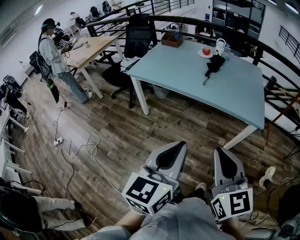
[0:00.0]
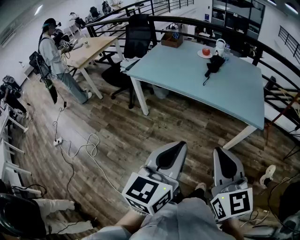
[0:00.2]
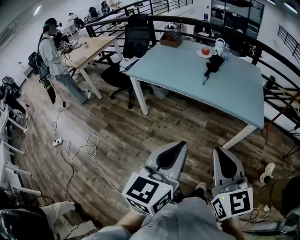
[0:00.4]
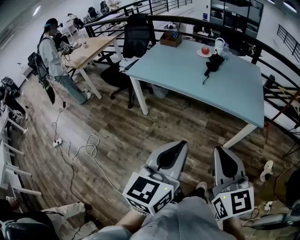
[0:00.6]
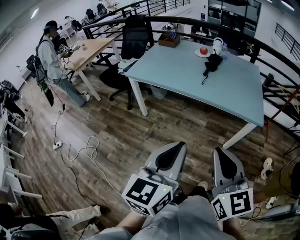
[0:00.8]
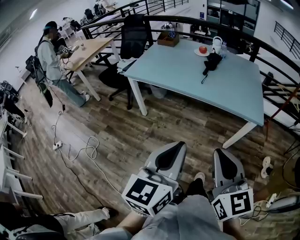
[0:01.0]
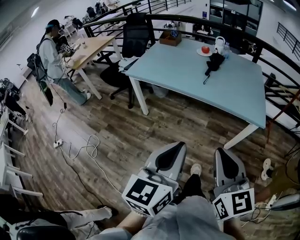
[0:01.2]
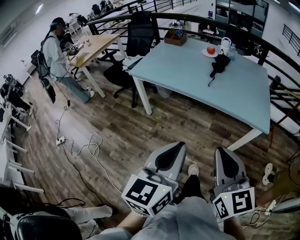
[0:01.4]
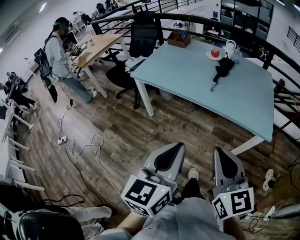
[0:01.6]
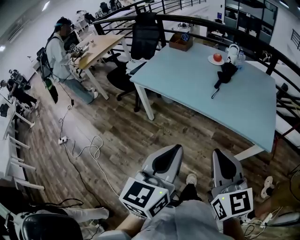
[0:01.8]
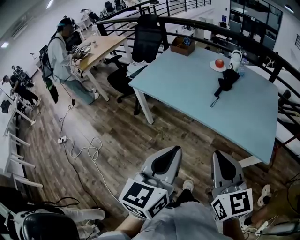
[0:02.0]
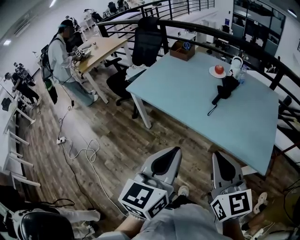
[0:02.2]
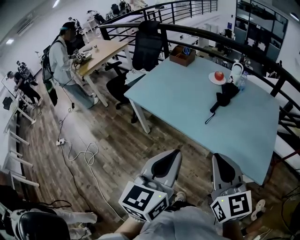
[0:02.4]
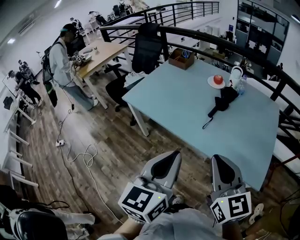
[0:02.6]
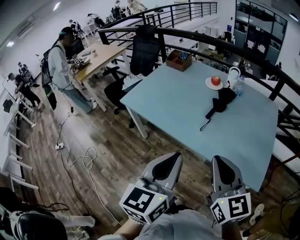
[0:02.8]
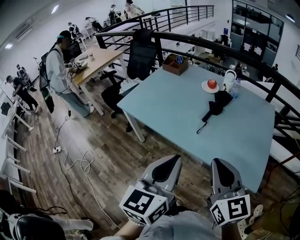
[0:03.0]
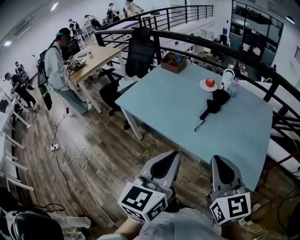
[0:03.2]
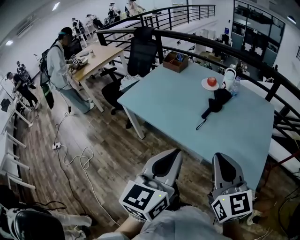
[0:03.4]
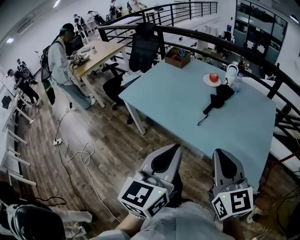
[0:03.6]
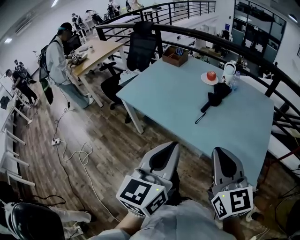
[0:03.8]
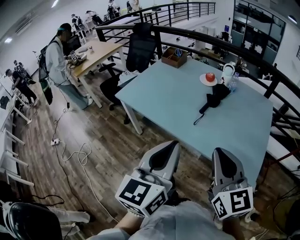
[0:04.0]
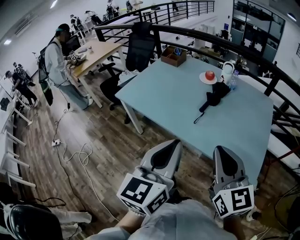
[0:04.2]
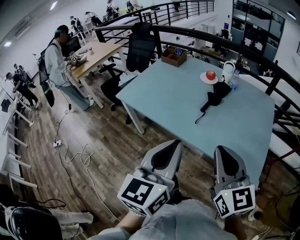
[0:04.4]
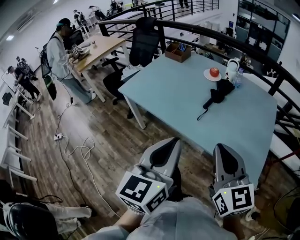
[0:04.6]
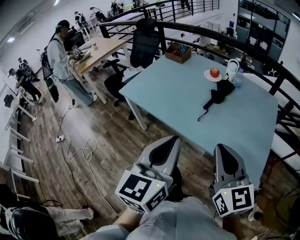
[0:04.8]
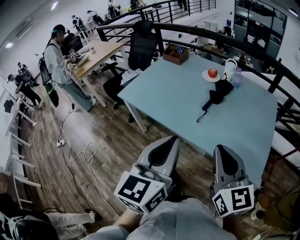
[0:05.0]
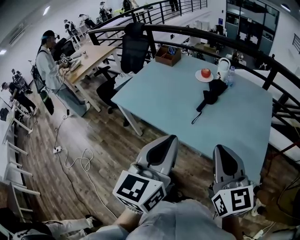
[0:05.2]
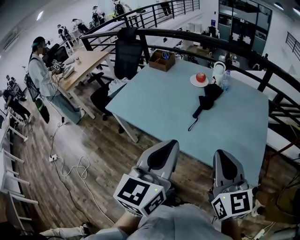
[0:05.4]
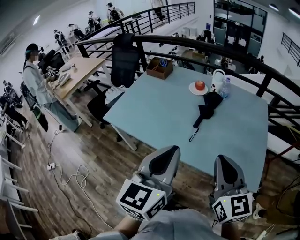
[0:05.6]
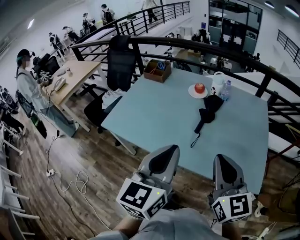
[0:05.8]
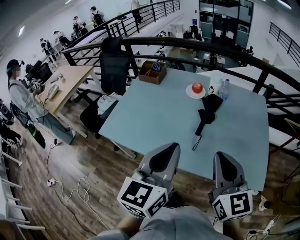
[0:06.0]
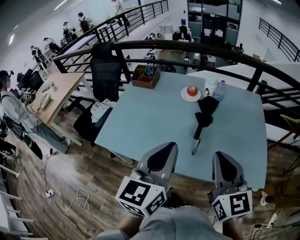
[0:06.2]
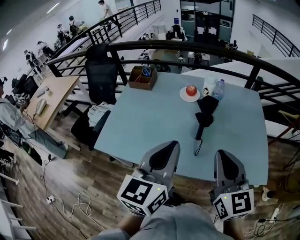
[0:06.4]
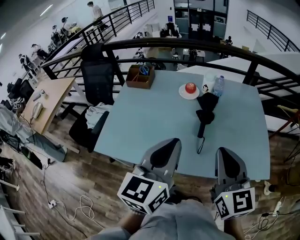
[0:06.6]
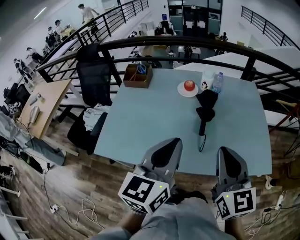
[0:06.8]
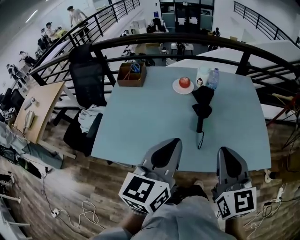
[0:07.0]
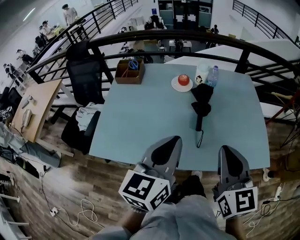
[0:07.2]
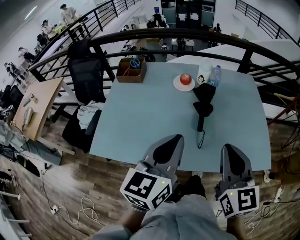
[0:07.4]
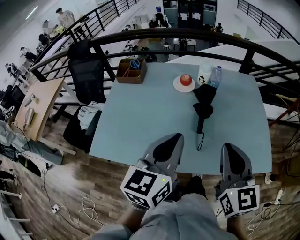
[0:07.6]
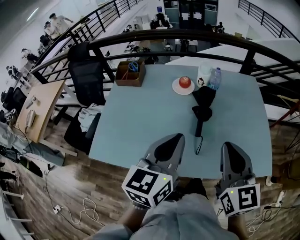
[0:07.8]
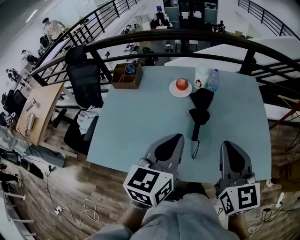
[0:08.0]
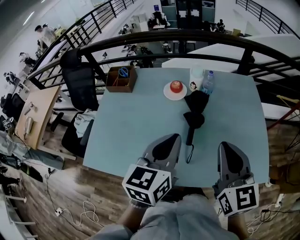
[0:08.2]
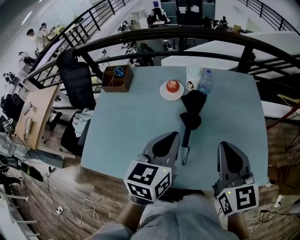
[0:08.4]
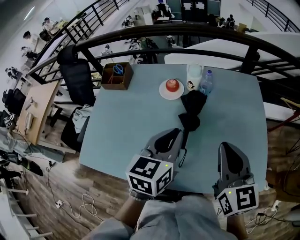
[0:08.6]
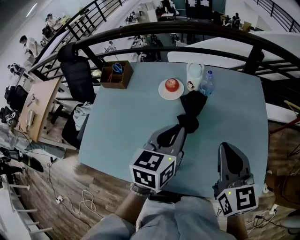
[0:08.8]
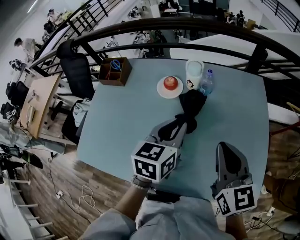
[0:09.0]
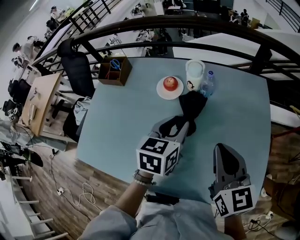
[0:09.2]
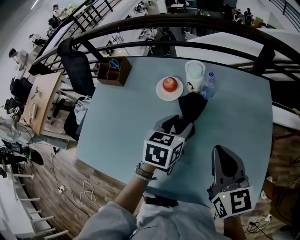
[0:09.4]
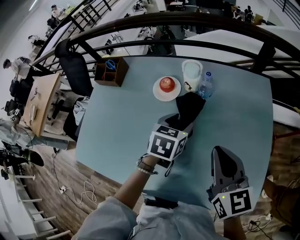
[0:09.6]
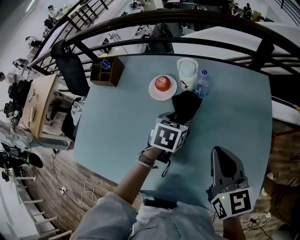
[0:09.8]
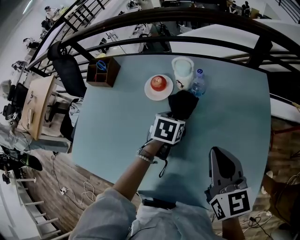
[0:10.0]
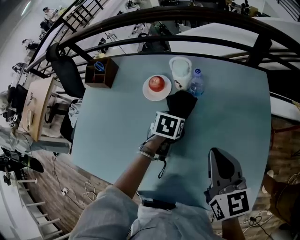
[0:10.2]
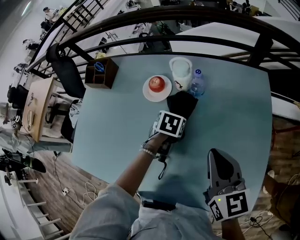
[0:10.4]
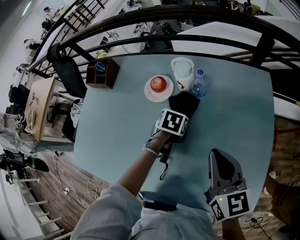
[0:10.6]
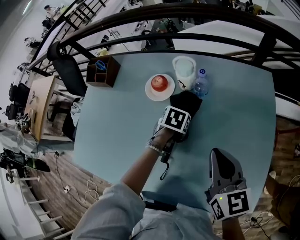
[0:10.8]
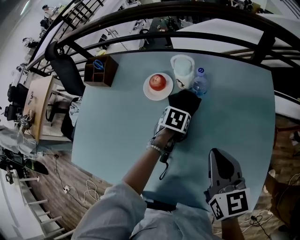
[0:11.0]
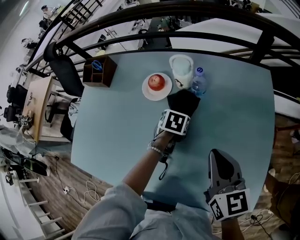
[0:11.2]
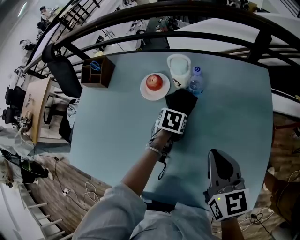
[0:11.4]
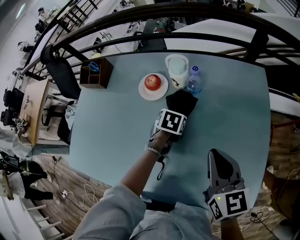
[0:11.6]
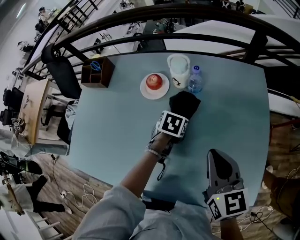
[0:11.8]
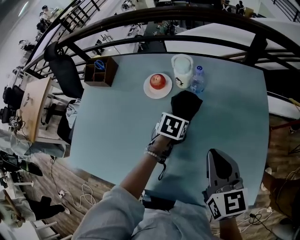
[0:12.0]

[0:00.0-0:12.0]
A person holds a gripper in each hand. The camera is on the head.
0:00.0 to 0:01.6: Both grippers move forward, about 10 cm.
0:01.6 to 0:03.0: Both grippers travel together forward and to the right, roughly 25 cm.
0:03.0 to 0:04.4: The grippers move only a little.
0:04.4 to 0:06.0: Both grippers move forward, approximately 15 cm.
0:06.0 to 0:07.6: The two grippers go roughly 10 cm forward and to the left.
0:07.6 to 0:09.0: The left gripper is displaced forward, to the right and downward by approximately 25 cm; the right gripper heads forward and to the right, covering approximately 20 cm.
0:09.0 to 0:10.4: The right gripper moves downward and forward, roughly 10 cm. The left gripper moves downward and forward, some 25 cm, tilts its fingers about 40 degrees downward, and opens.
0:10.4 to 0:12.0: The grippers make only small movements.

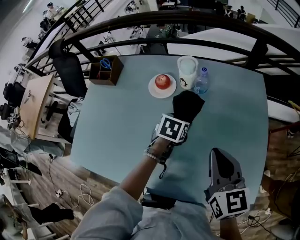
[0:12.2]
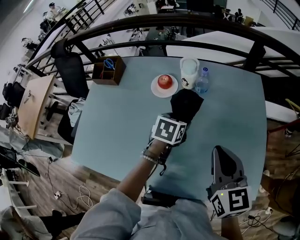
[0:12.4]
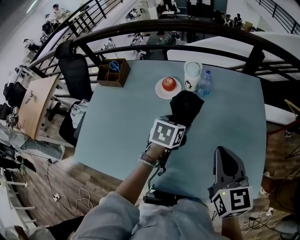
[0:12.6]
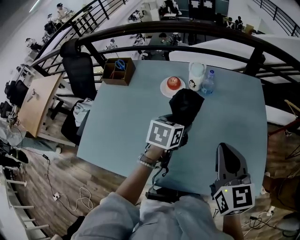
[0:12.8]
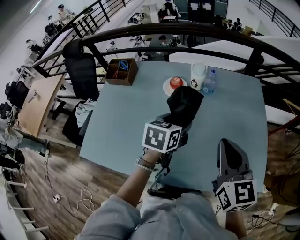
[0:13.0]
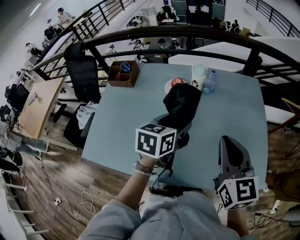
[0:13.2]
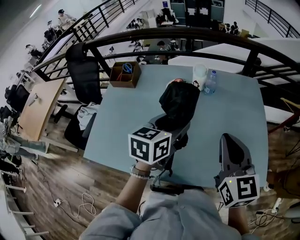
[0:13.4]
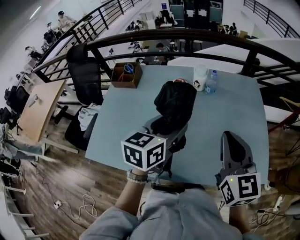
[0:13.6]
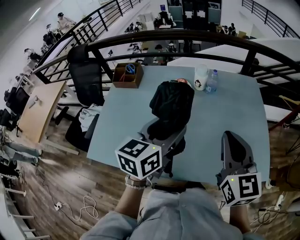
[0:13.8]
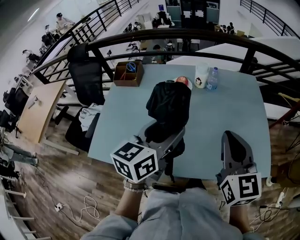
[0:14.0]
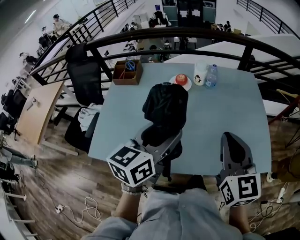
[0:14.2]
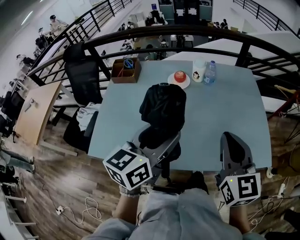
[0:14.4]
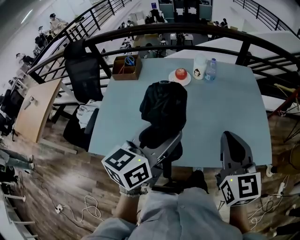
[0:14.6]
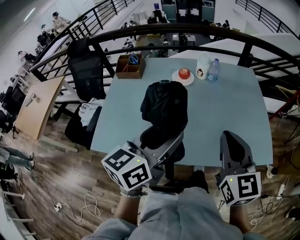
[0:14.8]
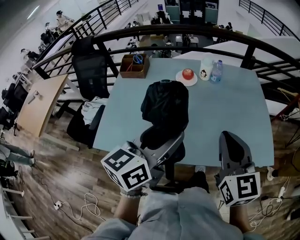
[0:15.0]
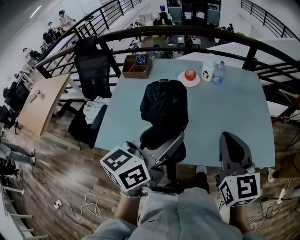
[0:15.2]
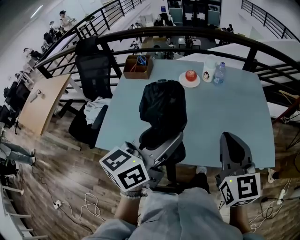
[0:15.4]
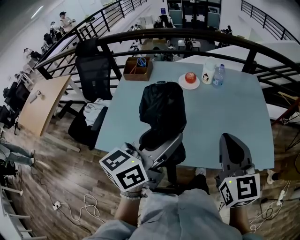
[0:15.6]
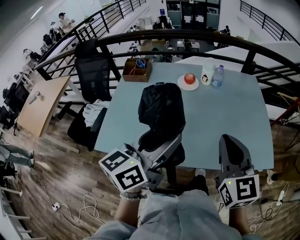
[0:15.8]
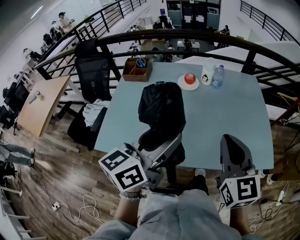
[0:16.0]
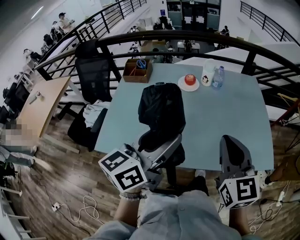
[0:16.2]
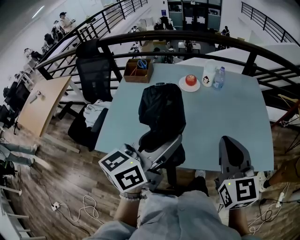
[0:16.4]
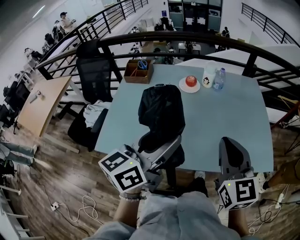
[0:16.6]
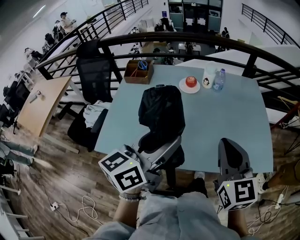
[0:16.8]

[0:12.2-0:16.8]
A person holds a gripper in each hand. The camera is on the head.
0:12.2 to 0:13.8: The right gripper shifts some 20 cm backward, upward and to the left, while the left gripper is displaced upward, backward and to the left by roughly 35 cm, and points its fingers about 40 degrees further upward.
0:13.8 to 0:15.2: The two grippers go some 15 cm backward and to the left.
0:15.2 to 0:16.8: Neither gripper changes place.

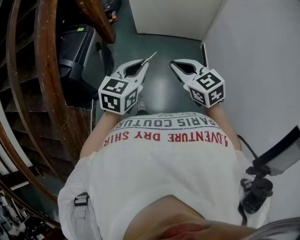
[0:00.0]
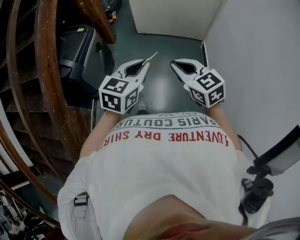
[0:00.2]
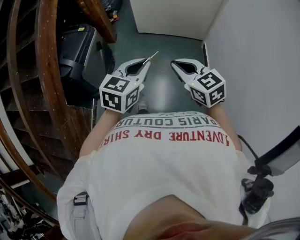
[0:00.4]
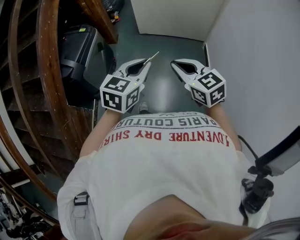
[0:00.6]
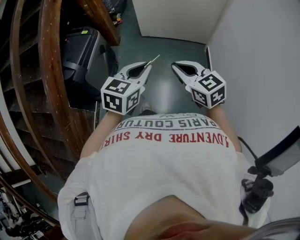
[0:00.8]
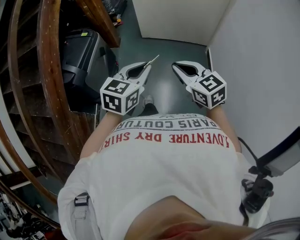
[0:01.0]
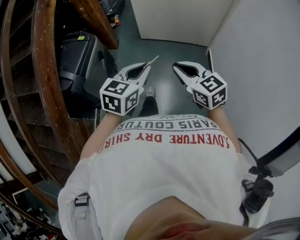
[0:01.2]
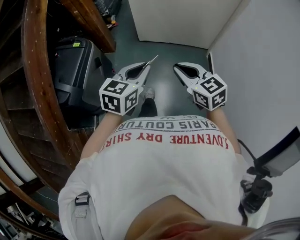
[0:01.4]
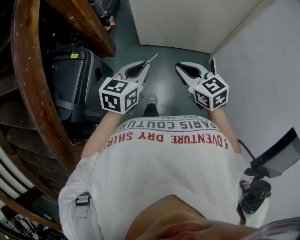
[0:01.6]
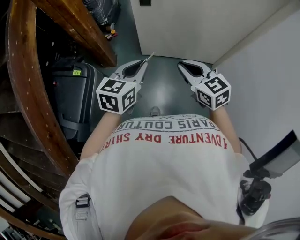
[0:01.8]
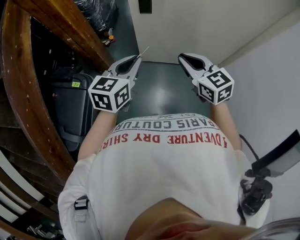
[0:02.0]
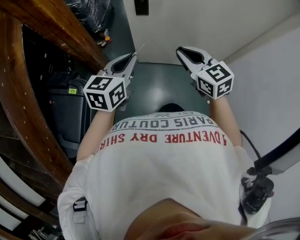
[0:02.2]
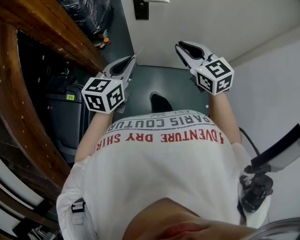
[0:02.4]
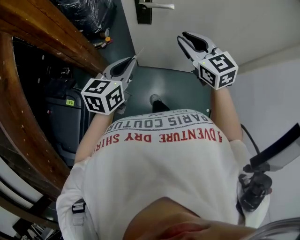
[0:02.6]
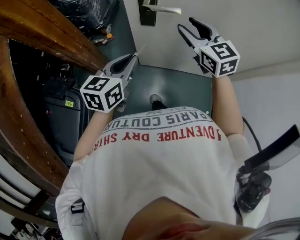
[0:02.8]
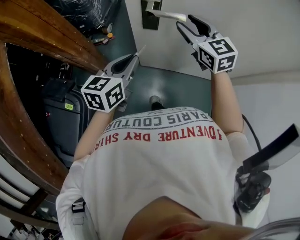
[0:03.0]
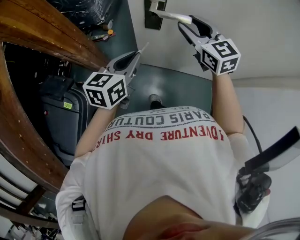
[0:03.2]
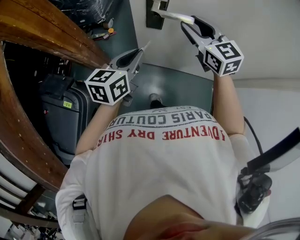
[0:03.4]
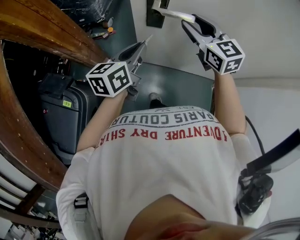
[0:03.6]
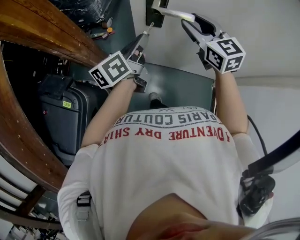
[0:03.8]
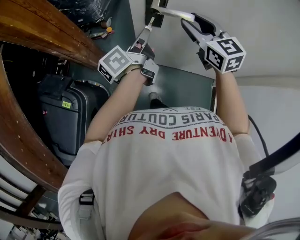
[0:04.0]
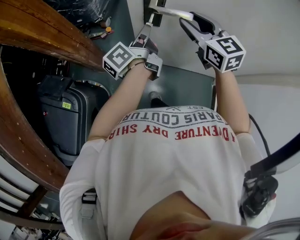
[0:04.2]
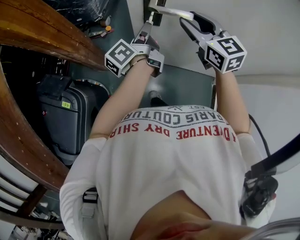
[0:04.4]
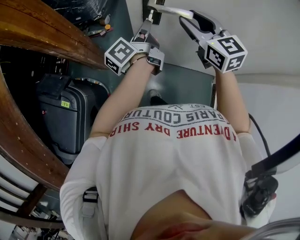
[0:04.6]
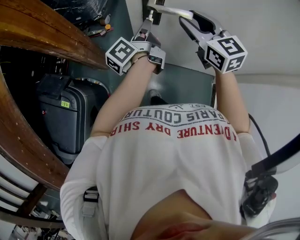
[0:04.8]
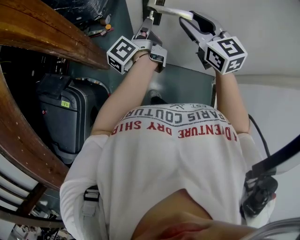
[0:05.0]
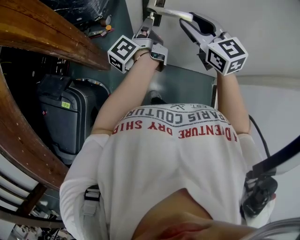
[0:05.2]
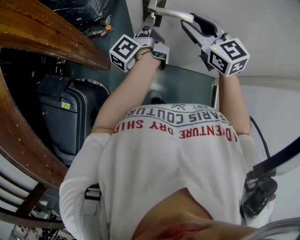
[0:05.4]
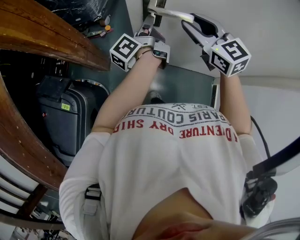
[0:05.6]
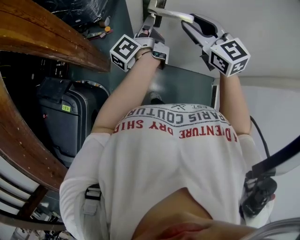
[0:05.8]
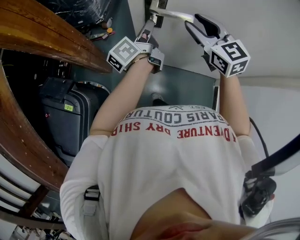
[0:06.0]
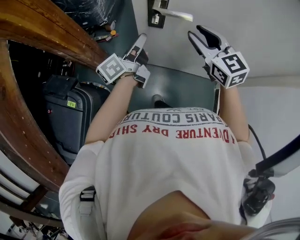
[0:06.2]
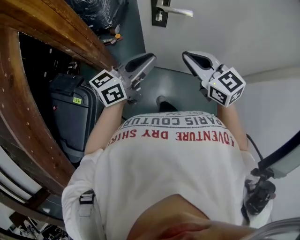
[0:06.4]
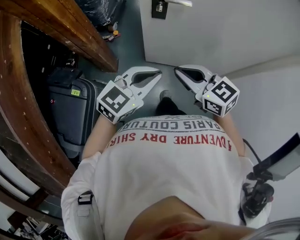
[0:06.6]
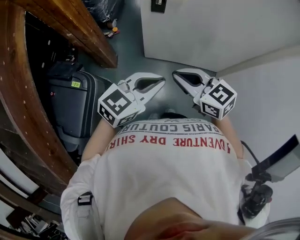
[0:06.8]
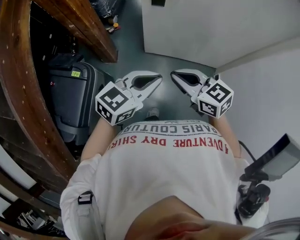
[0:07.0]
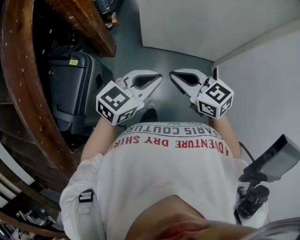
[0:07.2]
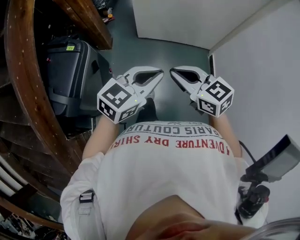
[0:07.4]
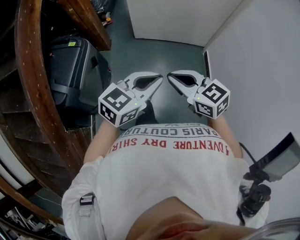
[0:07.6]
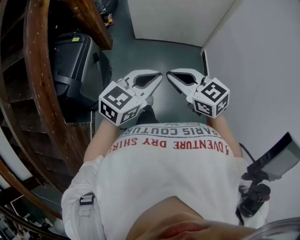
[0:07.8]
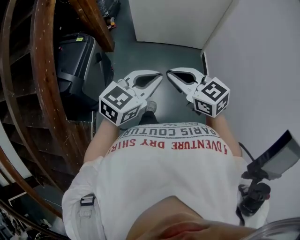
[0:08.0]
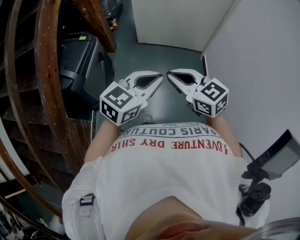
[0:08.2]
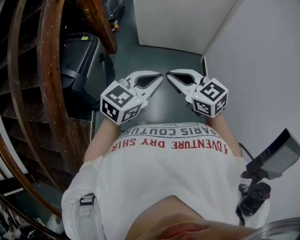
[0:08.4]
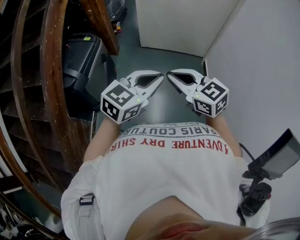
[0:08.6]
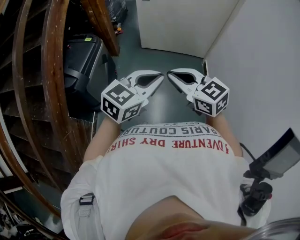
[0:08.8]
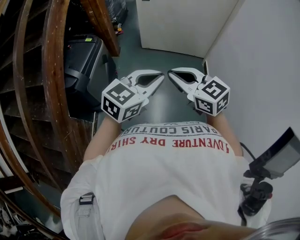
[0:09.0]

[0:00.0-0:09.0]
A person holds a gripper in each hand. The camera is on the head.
0:00.0 to 0:01.6: Both grippers move forward, approximately 35 cm.
0:01.6 to 0:03.0: The two grippers travel together, forward, some 50 cm. The right gripper opens up.
0:03.0 to 0:04.4: The left gripper moves forward, some 10 cm, and twists roughly 60 degrees counterclockwise, seen from behind.
0:04.4 to 0:06.0: The grippers stay close to where they were, moving slightly.
0:06.0 to 0:07.6: The pair of grippers is taken backward, roughly 70 cm. The left gripper twists some 60 degrees clockwise, seen from behind. Meanwhile the right gripper rotates roughly 20 degrees, and closes its fingers.
0:07.6 to 0:09.0: Both grippers move backward and upward, some 20 cm.
